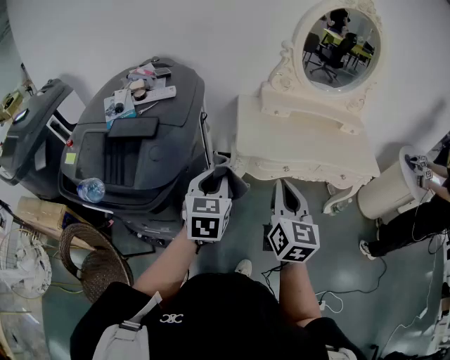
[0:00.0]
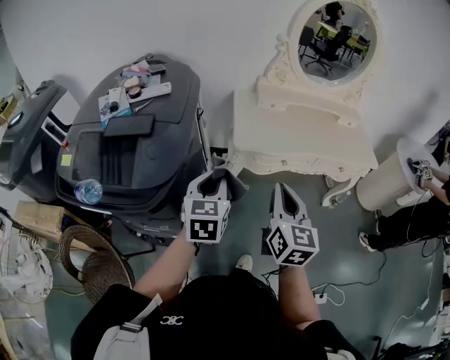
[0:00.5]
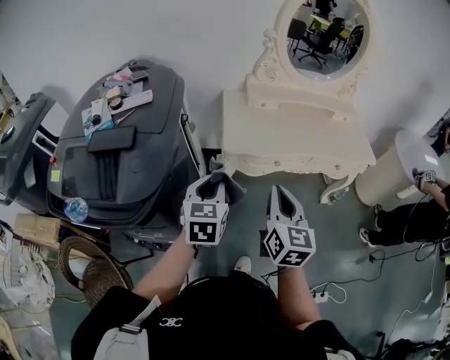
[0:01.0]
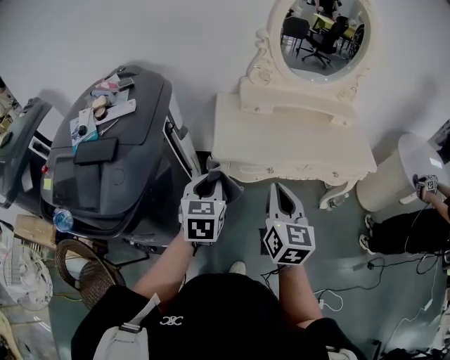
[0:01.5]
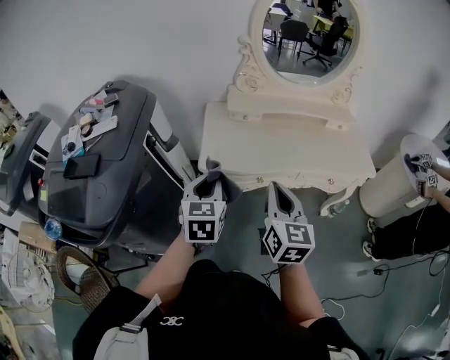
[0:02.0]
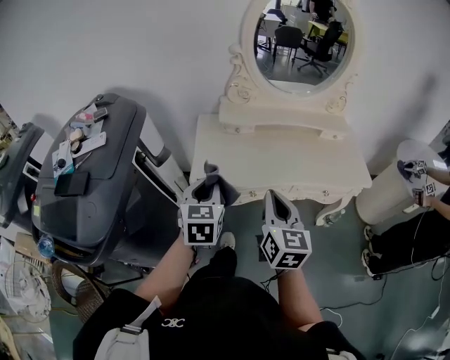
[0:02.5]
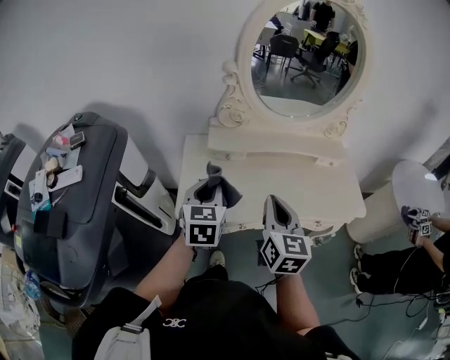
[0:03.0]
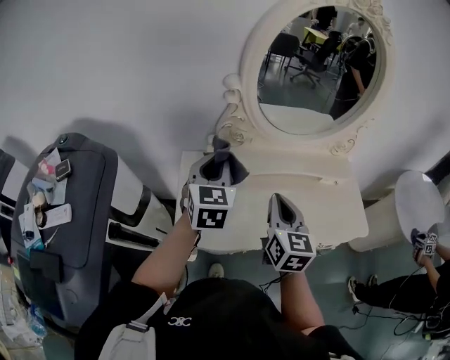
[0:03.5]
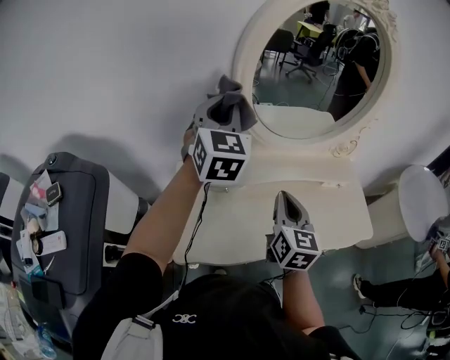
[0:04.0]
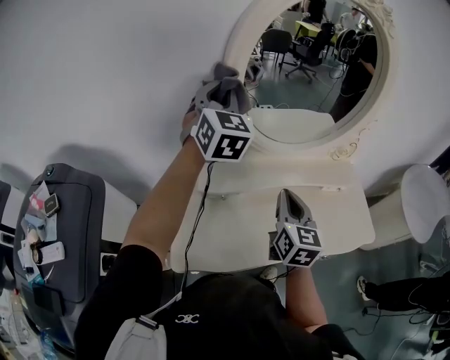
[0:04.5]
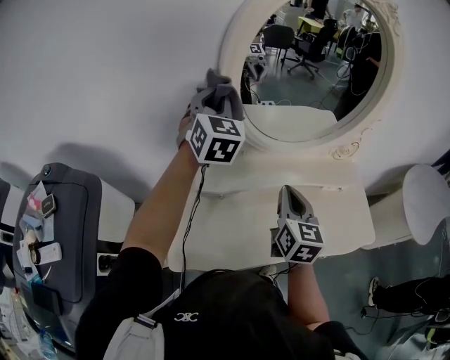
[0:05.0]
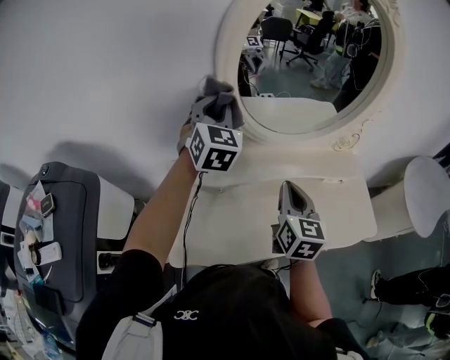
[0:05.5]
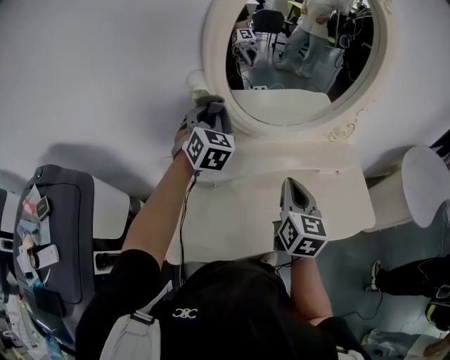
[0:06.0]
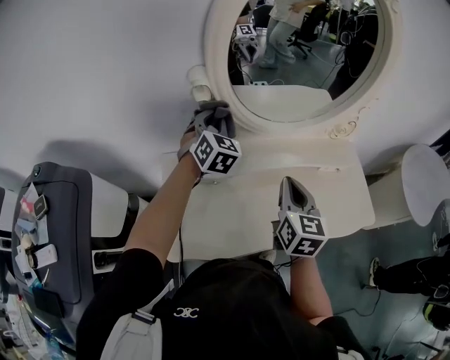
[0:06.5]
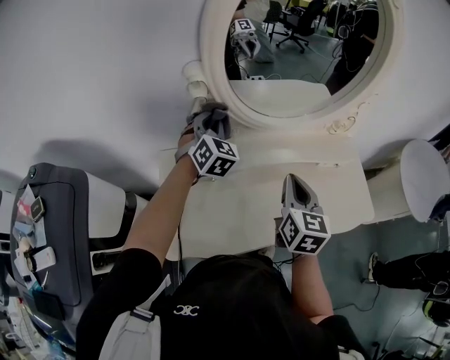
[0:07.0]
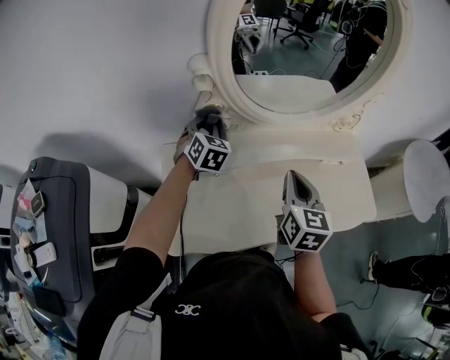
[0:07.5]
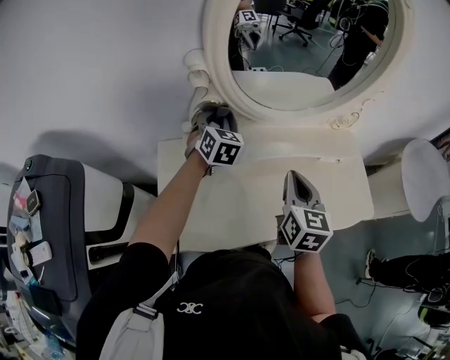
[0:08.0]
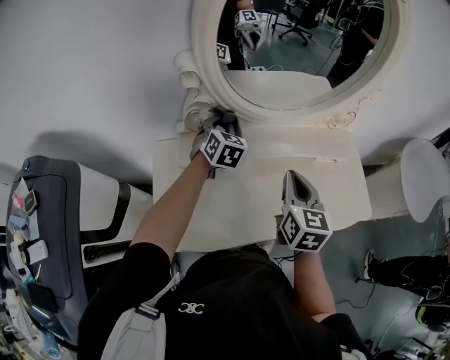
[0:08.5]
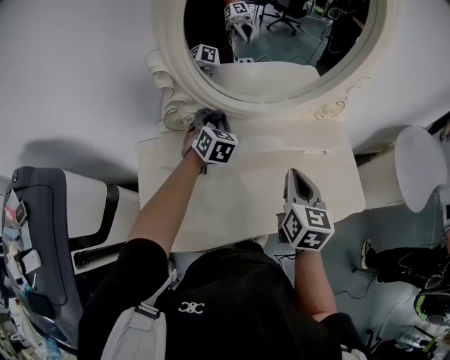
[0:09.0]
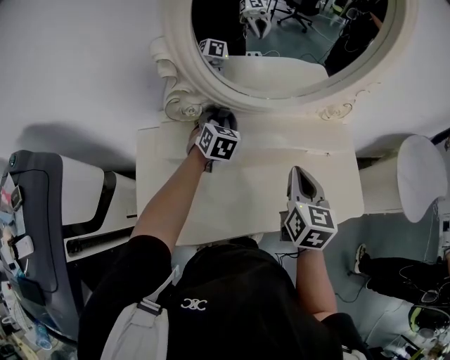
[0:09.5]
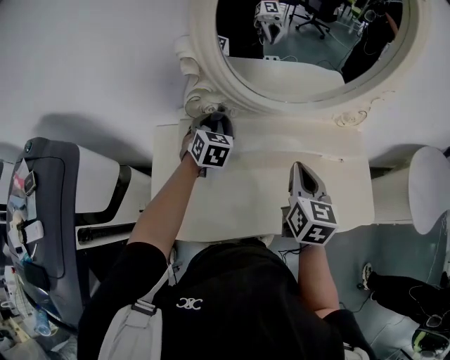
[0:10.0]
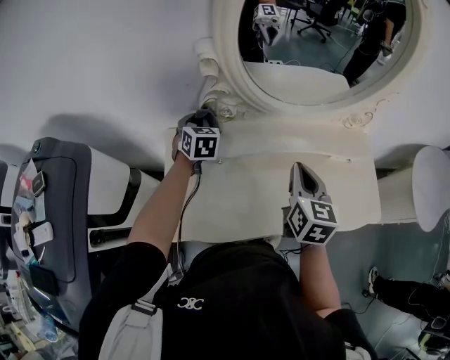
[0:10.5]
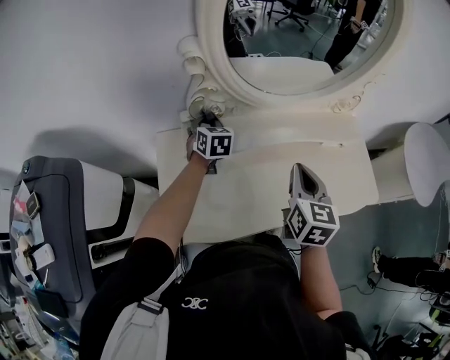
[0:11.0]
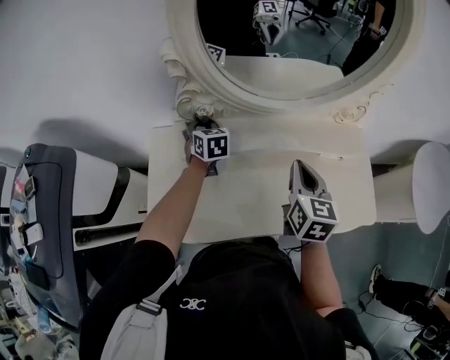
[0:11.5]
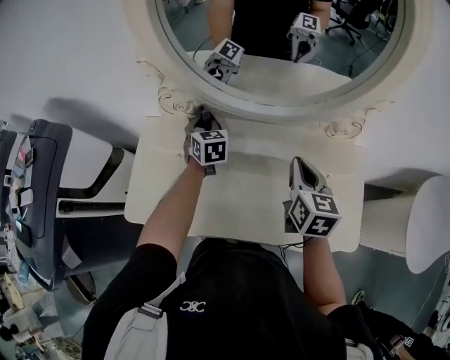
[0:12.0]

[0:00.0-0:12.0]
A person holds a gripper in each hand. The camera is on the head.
0:00.0 to 0:02.0: Both grippers move to the right and forward, about 20 cm.
0:02.0 to 0:04.0: The left gripper shifts roughly 50 cm forward and upward, and swivels roughly 30 degrees, while the right gripper goes about 35 cm forward.
0:04.0 to 0:06.0: The left gripper moves downward and forward, roughly 15 cm. Meanwhile the right gripper heads to the right, covering about 5 cm.
0:06.0 to 0:08.0: The left gripper moves downward, roughly 10 cm.
0:08.0 to 0:10.0: The left gripper travels downward by approximately 5 cm, and moves about 10 cm to the right and comes back.
0:10.0 to 0:12.0: The right gripper goes roughly 10 cm to the right and forward; the left gripper moves roughly 10 cm to the left and comes back, and turns by about 30 degrees.

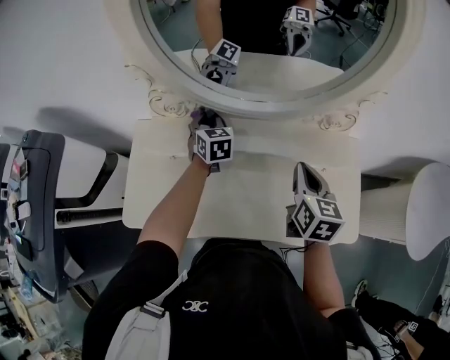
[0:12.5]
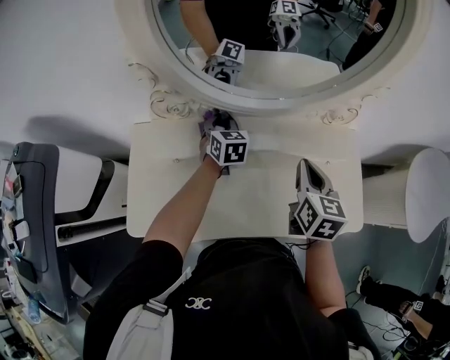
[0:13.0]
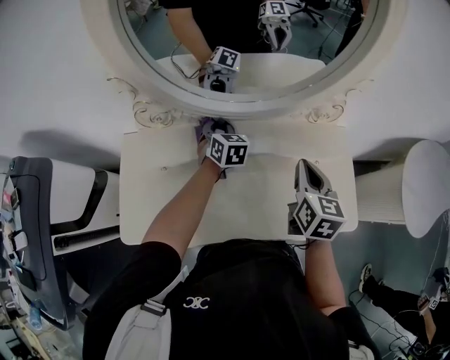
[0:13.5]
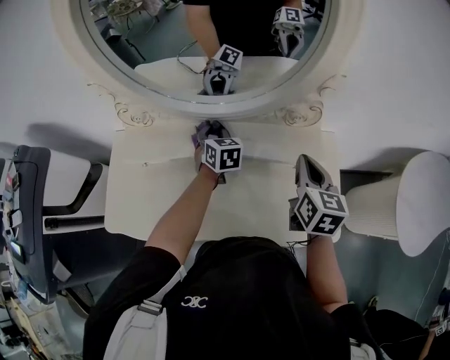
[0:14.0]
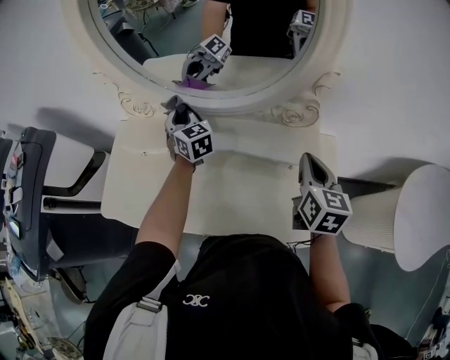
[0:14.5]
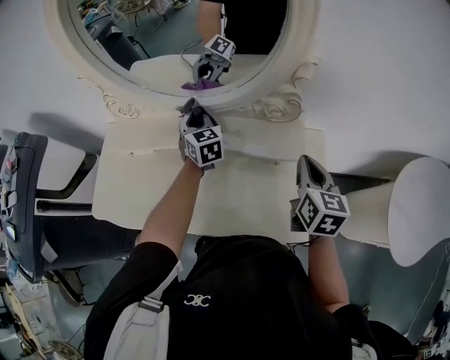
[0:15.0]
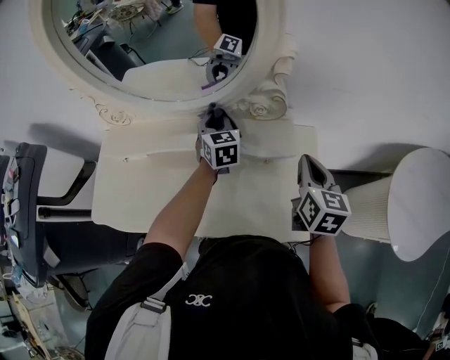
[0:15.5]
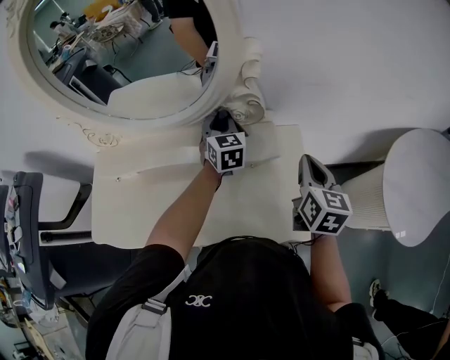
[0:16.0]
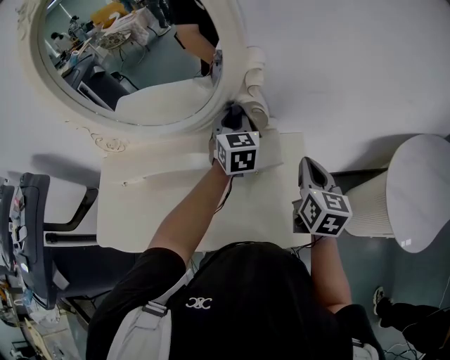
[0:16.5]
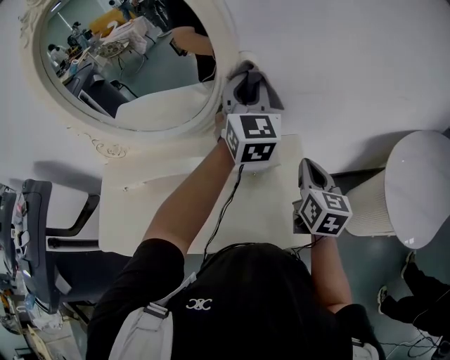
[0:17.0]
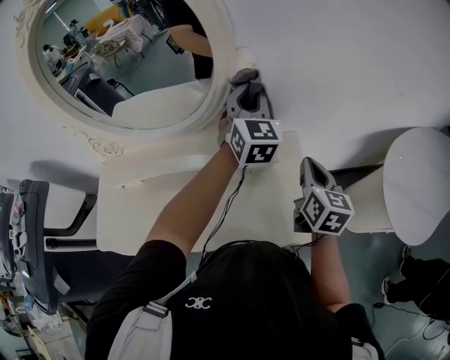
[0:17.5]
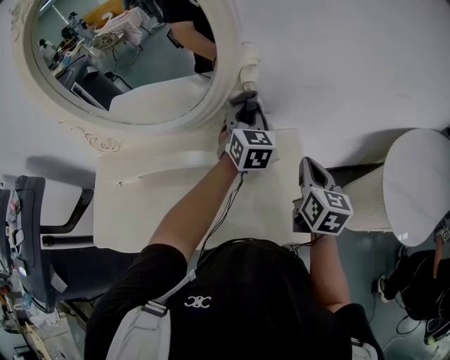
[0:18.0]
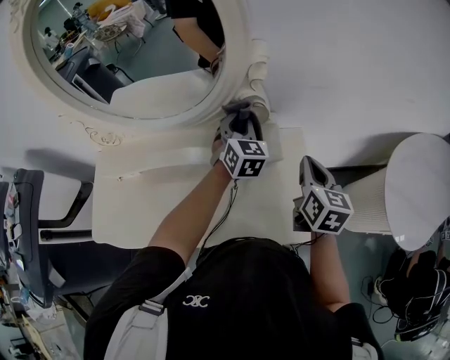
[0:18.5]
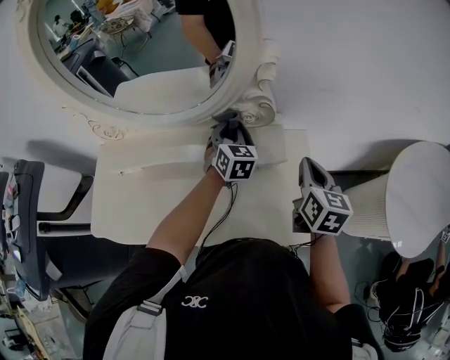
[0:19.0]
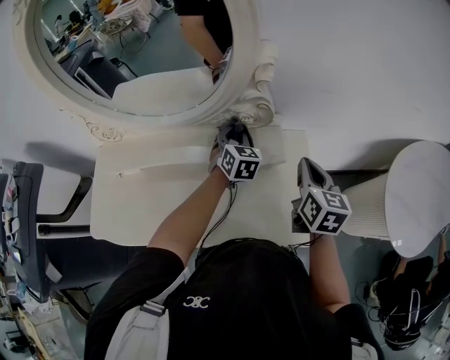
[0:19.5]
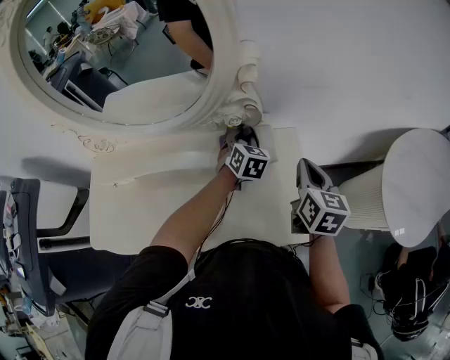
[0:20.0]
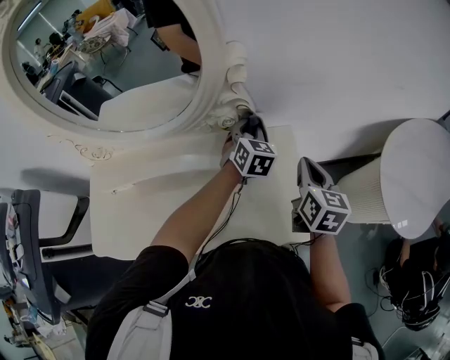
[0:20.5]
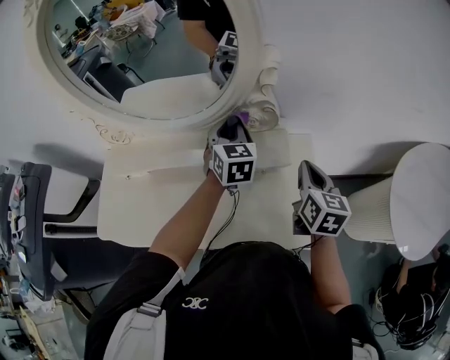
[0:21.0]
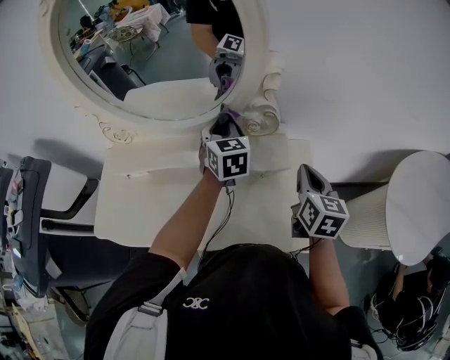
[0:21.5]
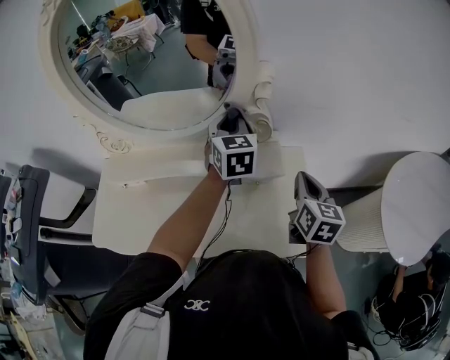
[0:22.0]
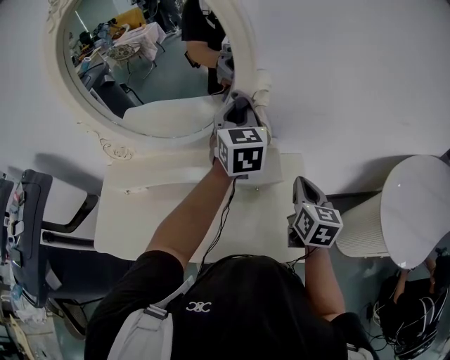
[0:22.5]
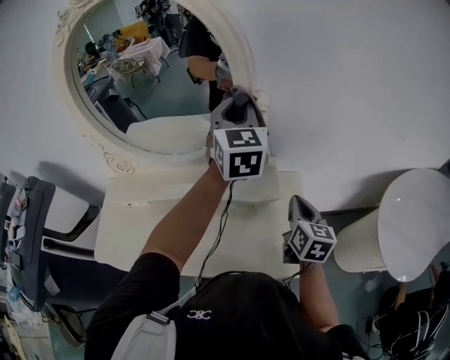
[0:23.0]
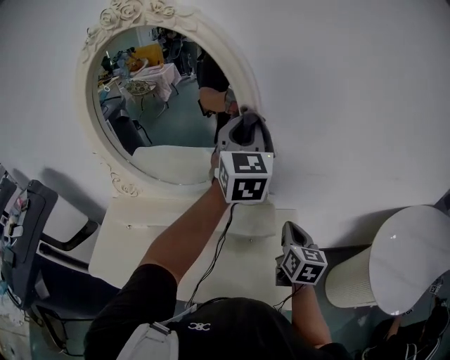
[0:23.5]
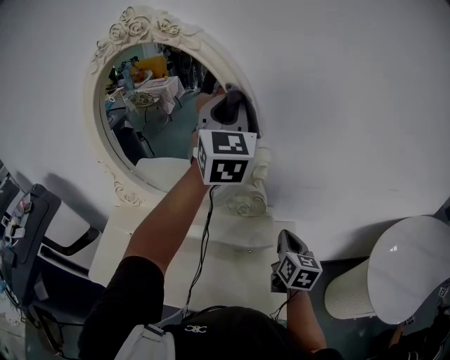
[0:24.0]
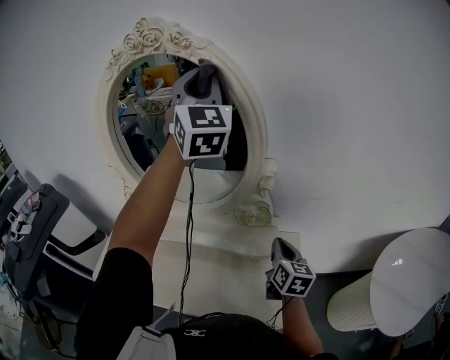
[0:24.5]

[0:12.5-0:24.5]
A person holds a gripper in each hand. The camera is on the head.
0:12.5 to 0:14.5: The right gripper moves to the right, about 15 cm; the left gripper goes roughly 5 cm upward, and reaches roughly 15 cm to the right, then returns.
0:14.5 to 0:16.5: The right gripper shifts about 10 cm to the right; the left gripper heads to the right, covering some 30 cm, and swivels some 30 degrees.
0:16.5 to 0:18.5: The left gripper goes upward and returns, approximately 15 cm each way.
0:18.5 to 0:20.5: The left gripper moves to the right, roughly 5 cm.
0:20.5 to 0:22.5: The left gripper moves upward and to the left, roughly 20 cm, and rotates roughly 20 degrees.
0:22.5 to 0:24.5: The left gripper shifts approximately 35 cm upward, and points its fingers roughly 30 degrees further upward. Meanwhile the right gripper ends up about 5 cm from where it was.

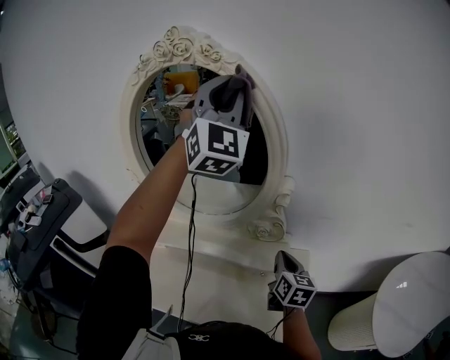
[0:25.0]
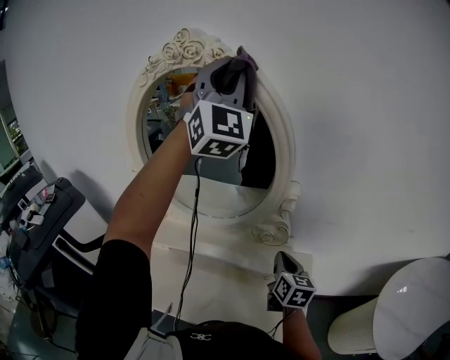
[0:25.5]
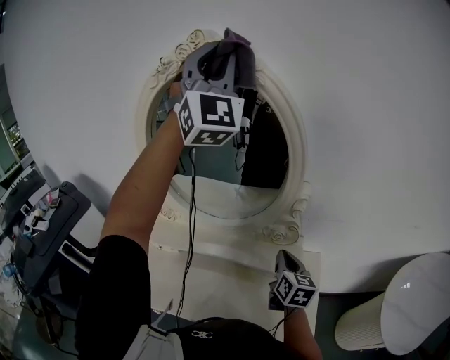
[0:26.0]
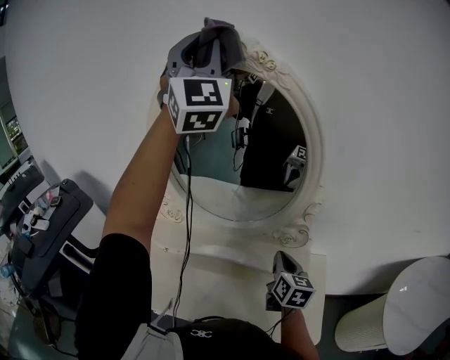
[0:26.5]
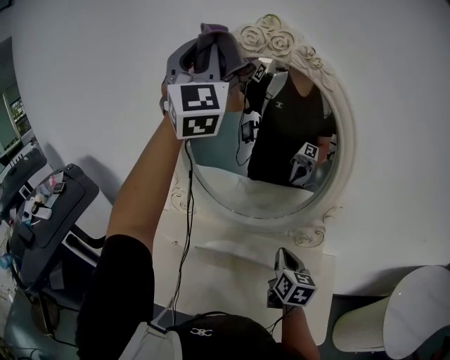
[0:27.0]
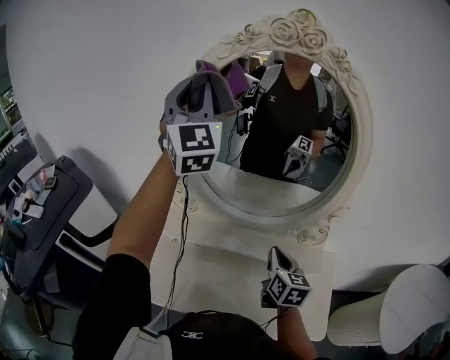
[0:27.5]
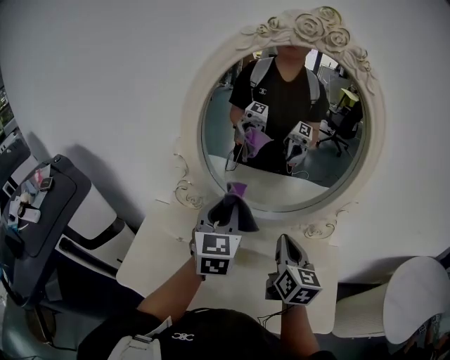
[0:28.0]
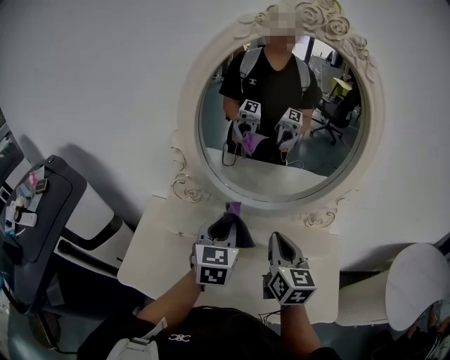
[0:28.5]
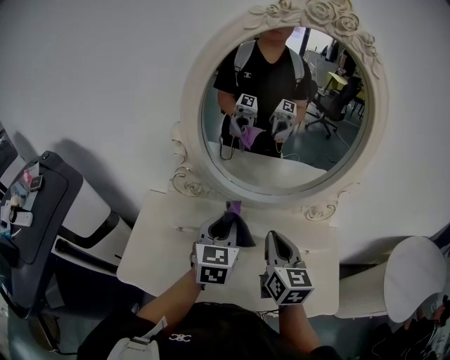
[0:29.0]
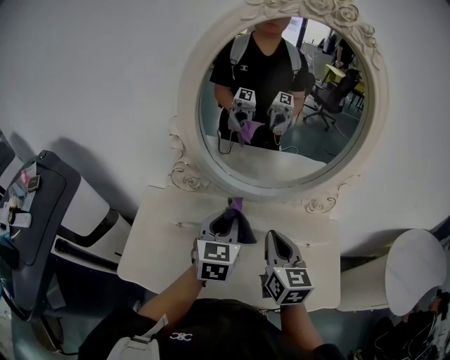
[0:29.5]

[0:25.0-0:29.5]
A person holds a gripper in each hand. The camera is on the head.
0:25.0 to 0:27.0: The right gripper moves to the left, roughly 15 cm. Meanwhile the left gripper is displaced to the left by roughly 25 cm, and changes its angle by some 20 degrees.
0:27.0 to 0:29.5: The right gripper heads to the left, covering some 15 cm, while the left gripper heads downward, covering roughly 50 cm, and points its fingers about 50 degrees further downward.
